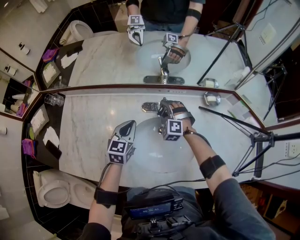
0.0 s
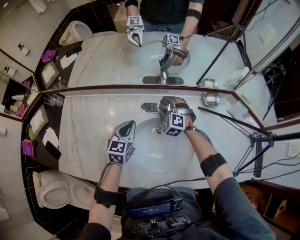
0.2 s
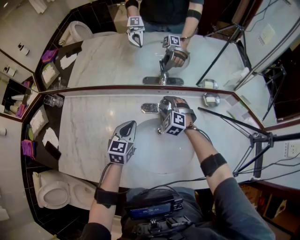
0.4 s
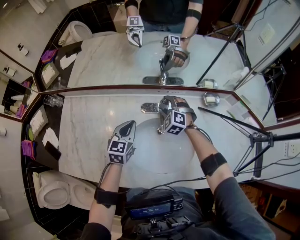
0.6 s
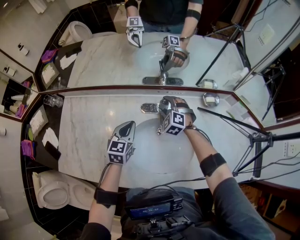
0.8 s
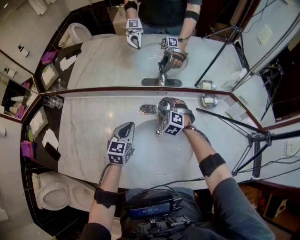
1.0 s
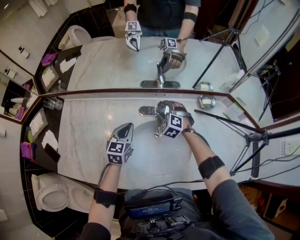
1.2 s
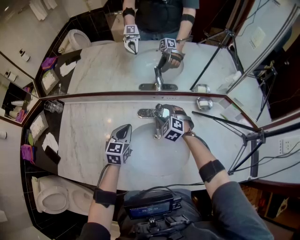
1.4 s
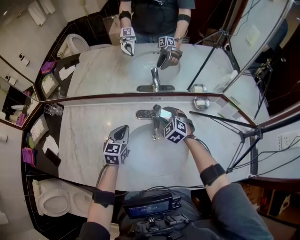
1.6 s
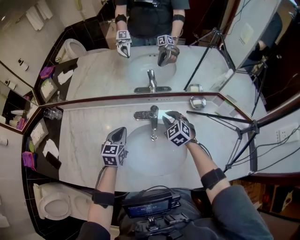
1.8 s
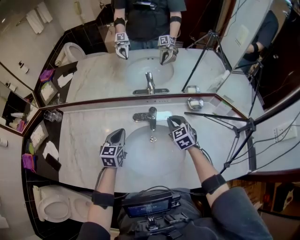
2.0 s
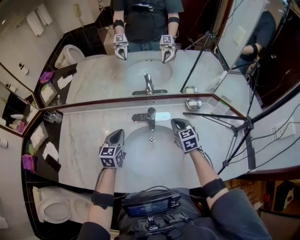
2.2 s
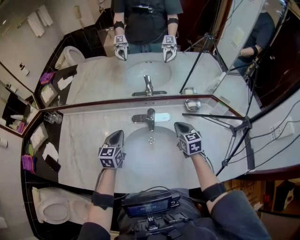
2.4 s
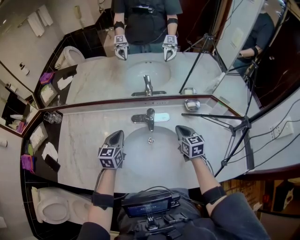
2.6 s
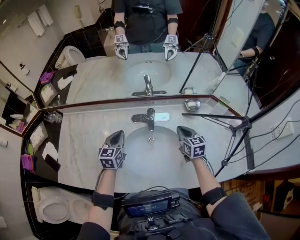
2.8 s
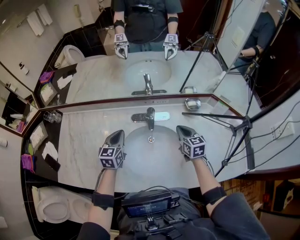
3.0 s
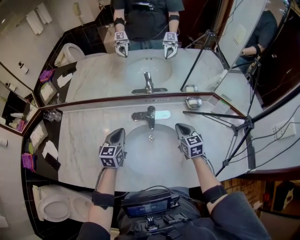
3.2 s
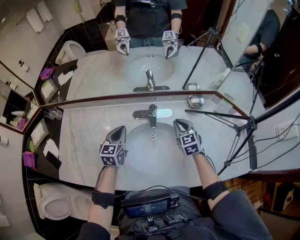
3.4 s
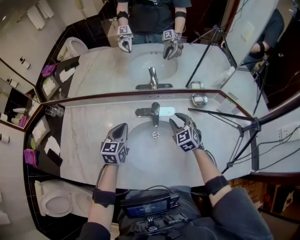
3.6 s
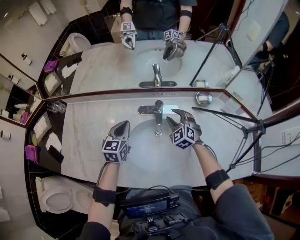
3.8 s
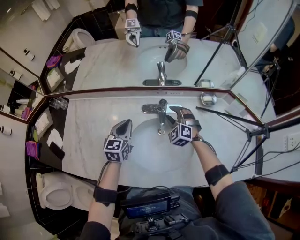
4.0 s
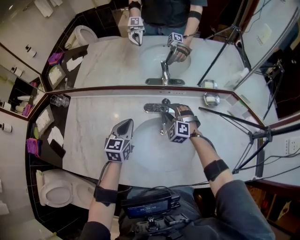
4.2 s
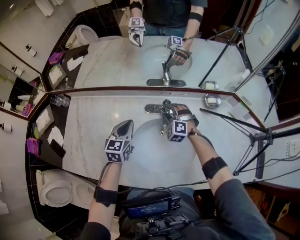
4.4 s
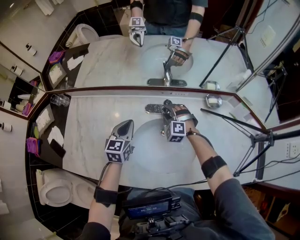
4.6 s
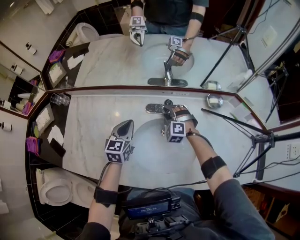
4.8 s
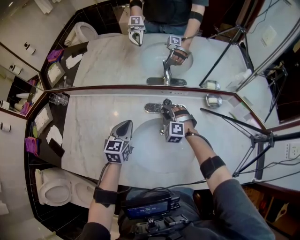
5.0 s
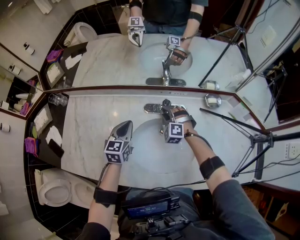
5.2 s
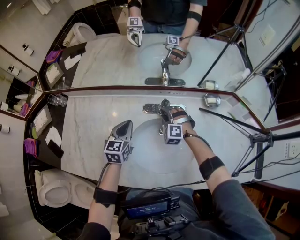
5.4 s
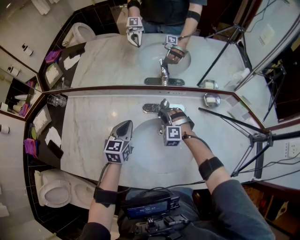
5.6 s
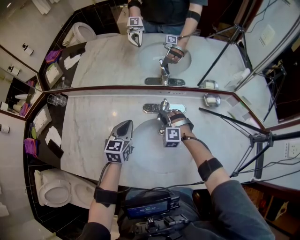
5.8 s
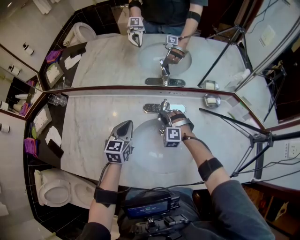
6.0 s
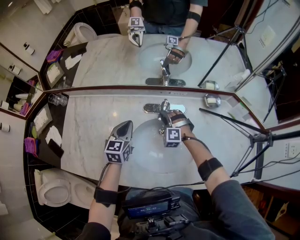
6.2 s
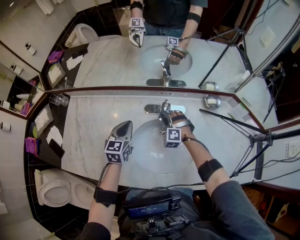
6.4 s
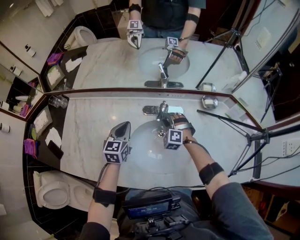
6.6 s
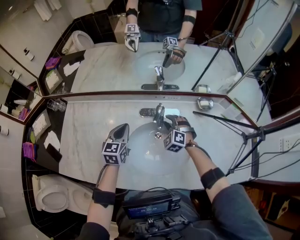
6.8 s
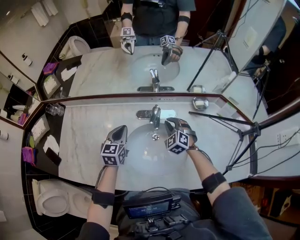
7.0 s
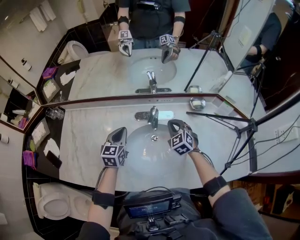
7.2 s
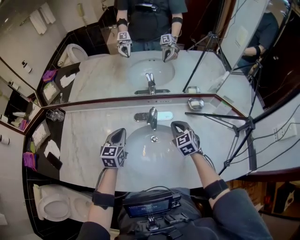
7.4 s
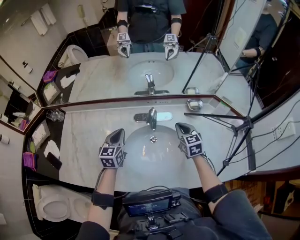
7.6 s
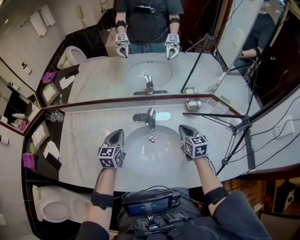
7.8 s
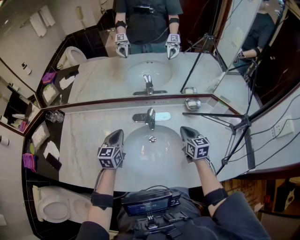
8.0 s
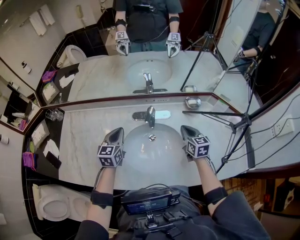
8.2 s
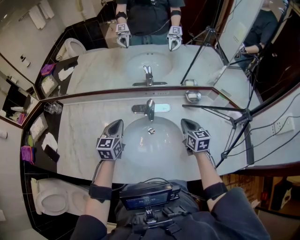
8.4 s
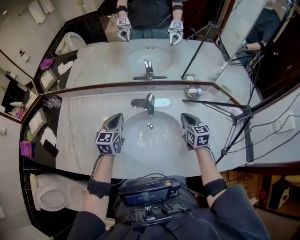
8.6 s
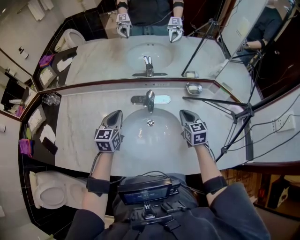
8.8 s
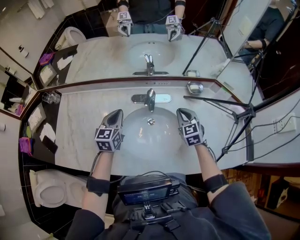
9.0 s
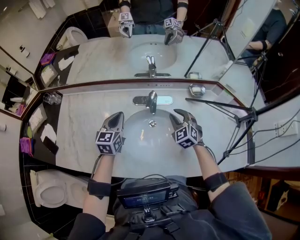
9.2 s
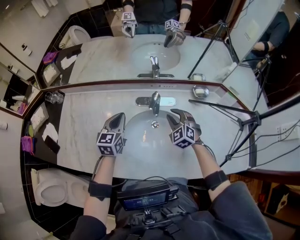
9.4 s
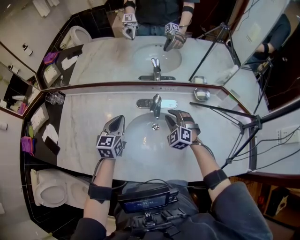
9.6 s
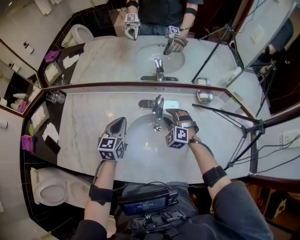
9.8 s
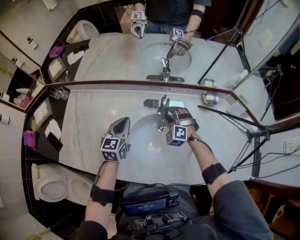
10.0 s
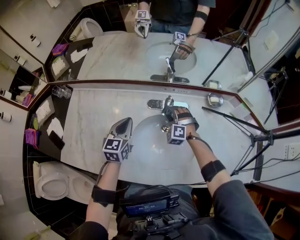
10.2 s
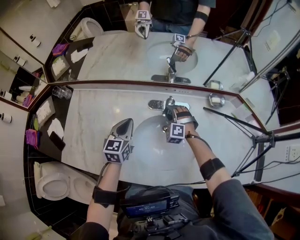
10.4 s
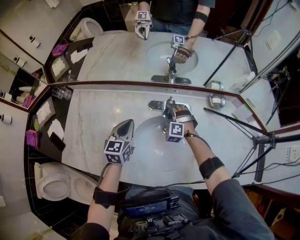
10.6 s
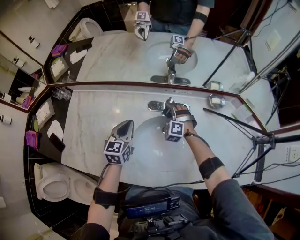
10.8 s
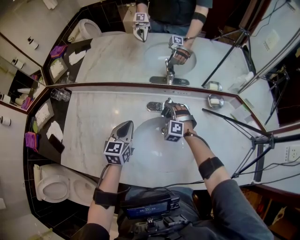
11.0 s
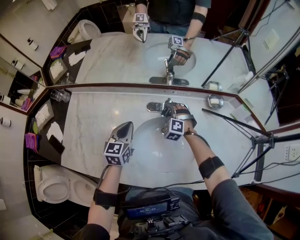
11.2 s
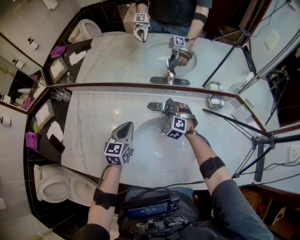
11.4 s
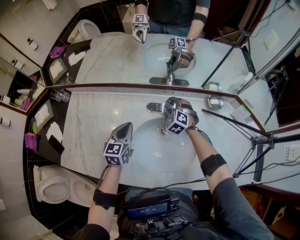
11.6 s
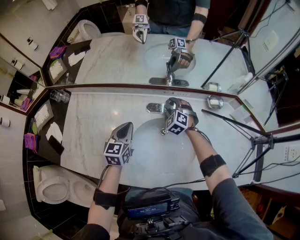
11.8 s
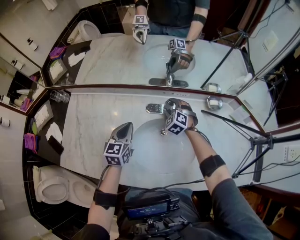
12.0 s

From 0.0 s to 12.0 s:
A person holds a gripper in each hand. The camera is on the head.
From 0.0 s to 1.6 s: The right gripper ends up some 5 cm from where it was, and turns by about 30 degrees.
From 1.6 s to 3.0 s: The right gripper moves to the right and backward, approximately 15 cm, rotates around the line of its fingers by roughly 50 degrees, clockwise from behind, and closes up.
From 3.0 s to 4.4 s: The right gripper goes roughly 20 cm to the left, forward and downward, rotates around the line of its fingers by some 70 degrees, counterclockwise from behind, and opens.
From 4.4 s to 6.0 s: The right gripper closes.
From 6.0 s to 7.6 s: The right gripper shifts about 20 cm to the right, upward and backward, rotates around the line of its fingers by about 70 degrees, clockwise from behind, and closes its fingers.
From 7.6 s to 9.0 s: The grippers move only a little.
From 9.0 s to 10.4 s: The right gripper travels to the left, downward and forward by roughly 20 cm, rotates around the line of its fingers by about 60 degrees, counterclockwise from behind, and opens.
From 10.4 s to 12.0 s: The right gripper is displaced forward by some 5 cm, and turns by some 20 degrees.

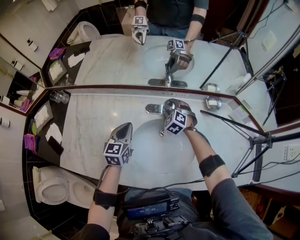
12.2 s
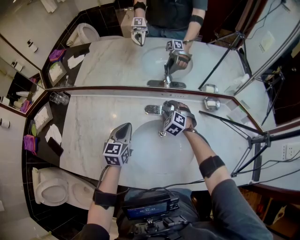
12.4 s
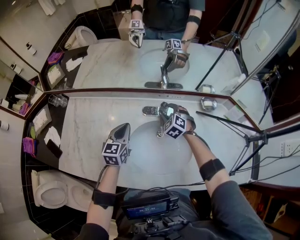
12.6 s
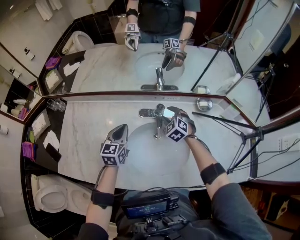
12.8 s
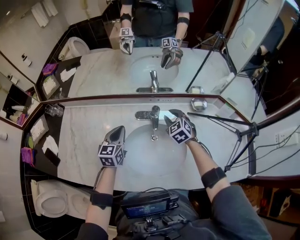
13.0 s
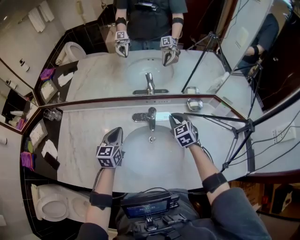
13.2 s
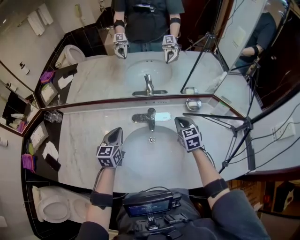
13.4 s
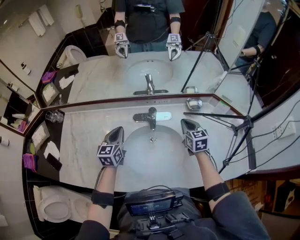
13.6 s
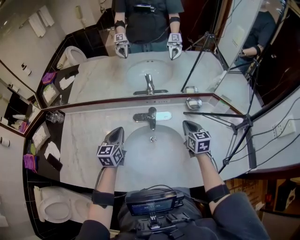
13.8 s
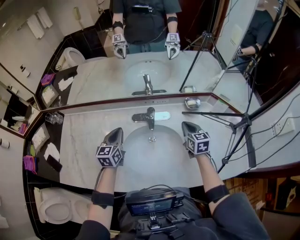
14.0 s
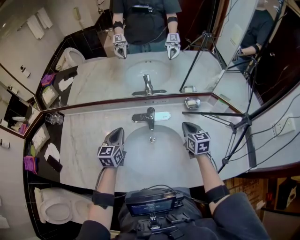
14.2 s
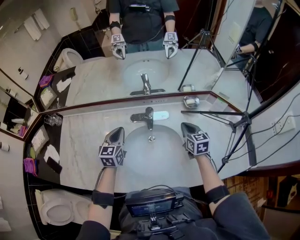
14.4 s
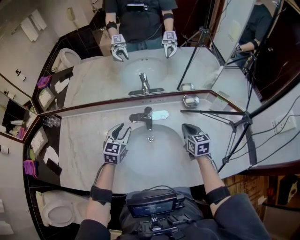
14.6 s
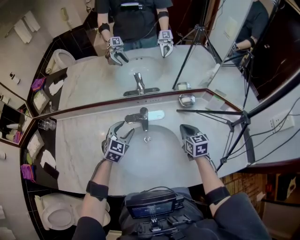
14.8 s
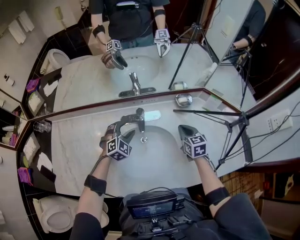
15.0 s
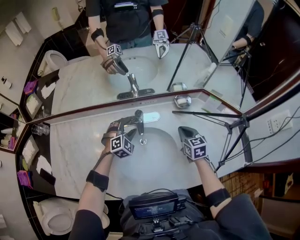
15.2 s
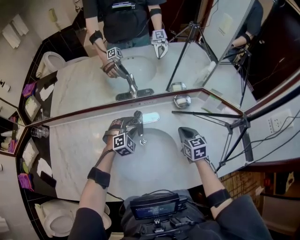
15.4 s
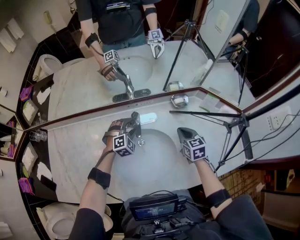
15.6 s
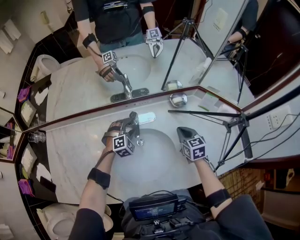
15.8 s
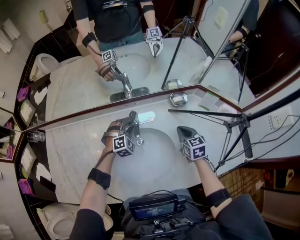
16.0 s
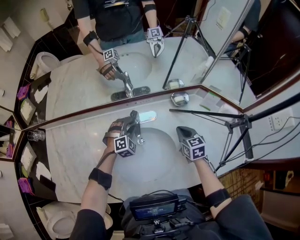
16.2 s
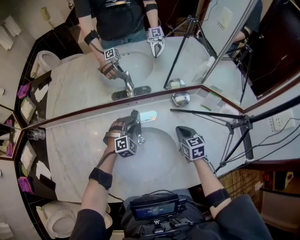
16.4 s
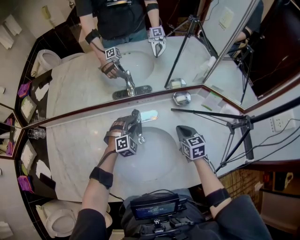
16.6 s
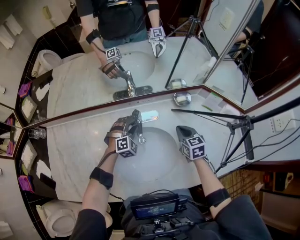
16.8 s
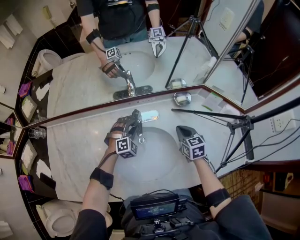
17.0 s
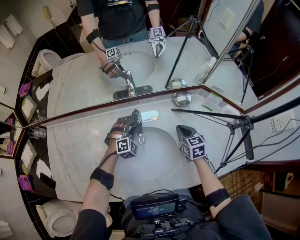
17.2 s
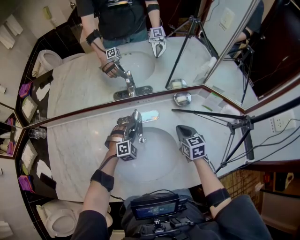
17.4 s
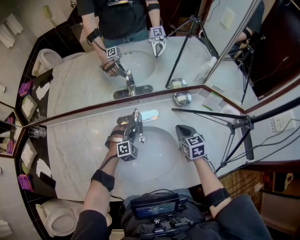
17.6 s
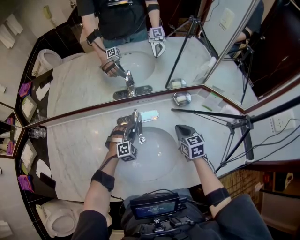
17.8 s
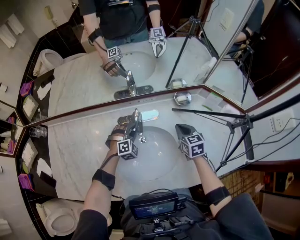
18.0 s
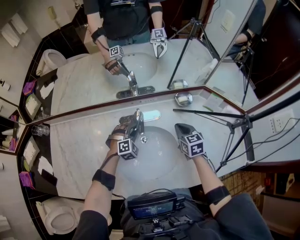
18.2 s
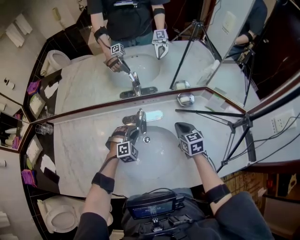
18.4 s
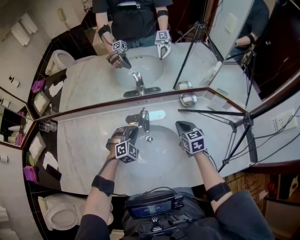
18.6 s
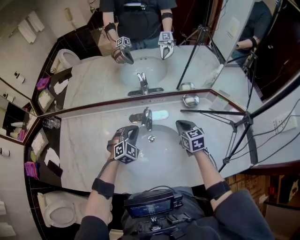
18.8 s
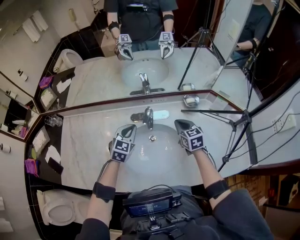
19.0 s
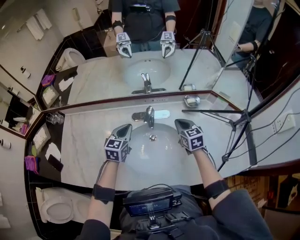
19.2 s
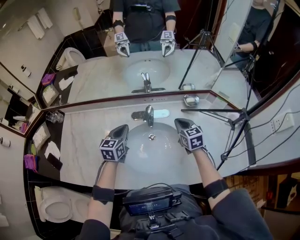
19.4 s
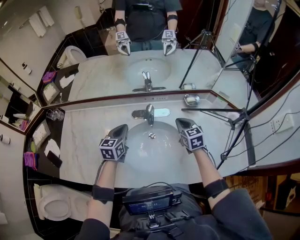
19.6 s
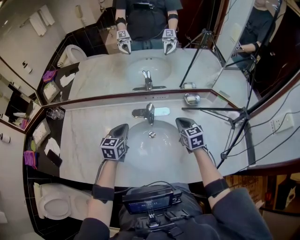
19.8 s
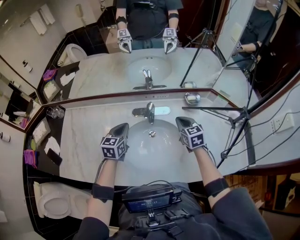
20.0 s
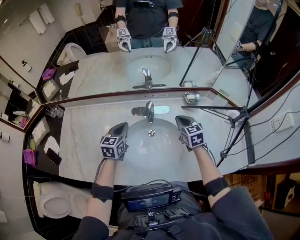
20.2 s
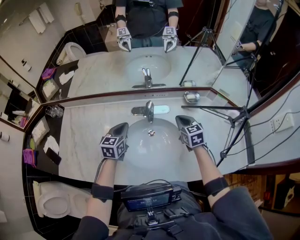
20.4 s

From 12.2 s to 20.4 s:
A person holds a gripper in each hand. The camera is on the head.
From 12.2 s to 13.8 s: The right gripper is displaced to the right, backward and upward by approximately 25 cm, rolls clockwise, seen from behind, by roughly 60 degrees, and closes up.
From 13.8 s to 15.4 s: The right gripper moves roughly 5 cm. Meanwhile the left gripper goes approximately 20 cm to the right, downward and forward, twists about 70 degrees clockwise, seen from behind, and opens.
From 15.4 s to 17.2 s: The left gripper closes its fingers.
From 17.2 s to 18.8 s: The left gripper shifts approximately 10 cm upward and backward, and closes; the right gripper changes place by roughly 5 cm.
From 18.8 s to 20.4 s: The left gripper travels to the left by roughly 5 cm, and rotates around the line of its fingers by approximately 50 degrees, counterclockwise from behind.

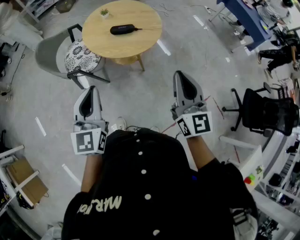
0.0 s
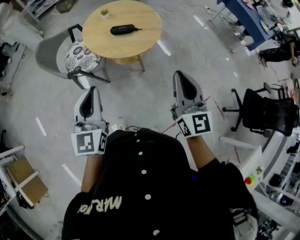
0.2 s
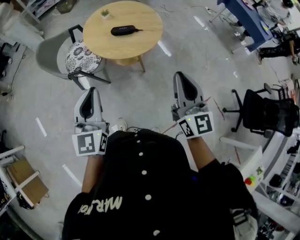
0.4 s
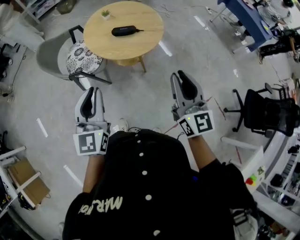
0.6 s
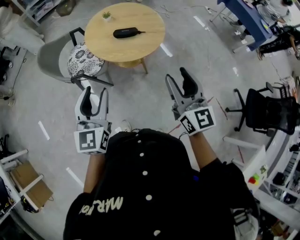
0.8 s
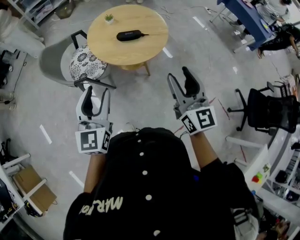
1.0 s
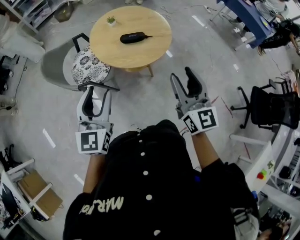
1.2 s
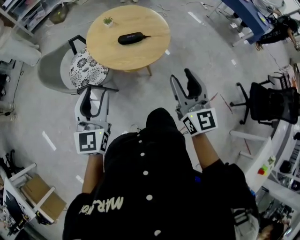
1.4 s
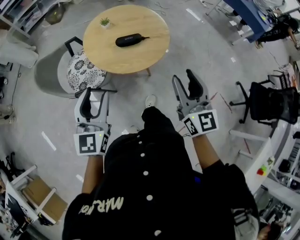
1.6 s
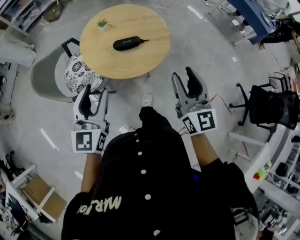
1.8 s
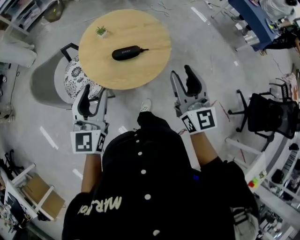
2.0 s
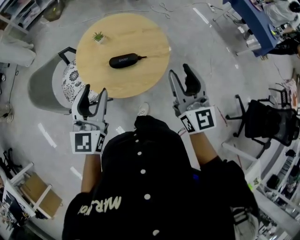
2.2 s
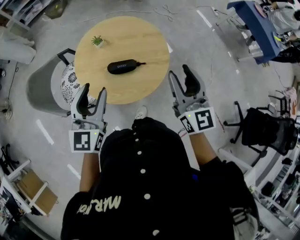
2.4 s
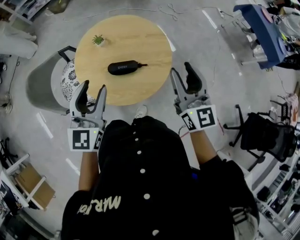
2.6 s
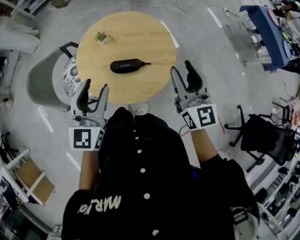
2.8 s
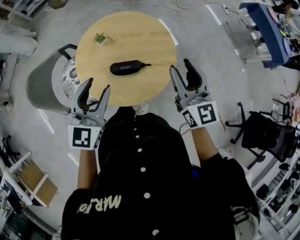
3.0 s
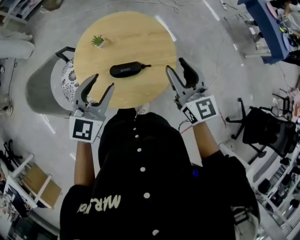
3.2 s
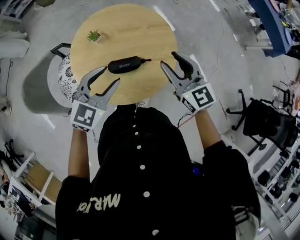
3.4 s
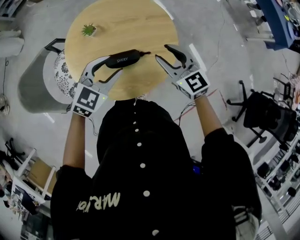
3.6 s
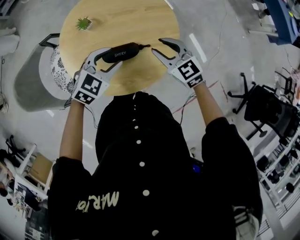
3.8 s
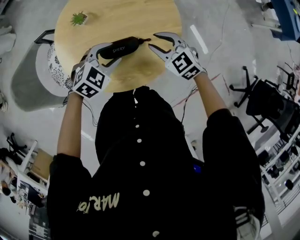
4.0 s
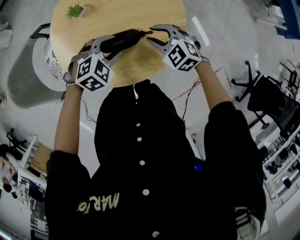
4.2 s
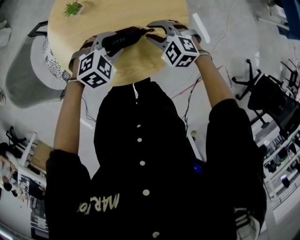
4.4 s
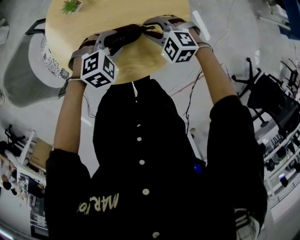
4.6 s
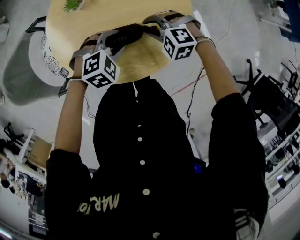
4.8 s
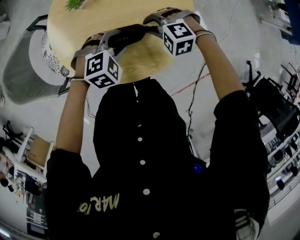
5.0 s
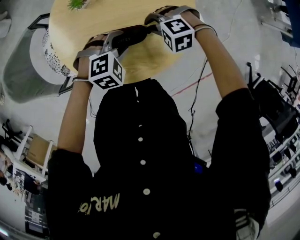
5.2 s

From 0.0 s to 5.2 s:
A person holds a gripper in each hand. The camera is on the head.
From 0.0 s to 1.8 s: Both grippers travel together forward, approximately 20 cm. The left gripper opens; the right gripper opens.
From 1.8 s to 3.4 s: Both grippers travel together forward, roughly 30 cm. The right gripper turns by some 30 degrees, while the left gripper changes its angle by roughly 30 degrees.
From 3.4 s to 5.2 s: Both grippers move downward, approximately 25 cm. The left gripper angles its fingers downward, by roughly 30 degrees; the right gripper tips its fingers downward by roughly 50 degrees, and closes up.
